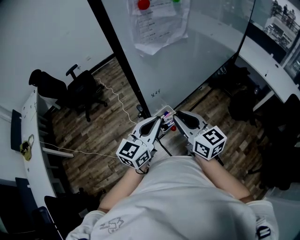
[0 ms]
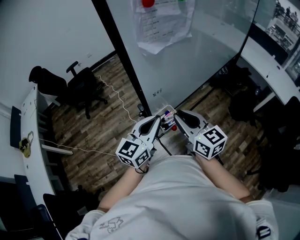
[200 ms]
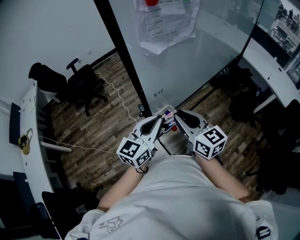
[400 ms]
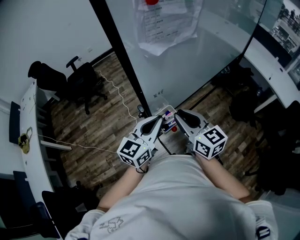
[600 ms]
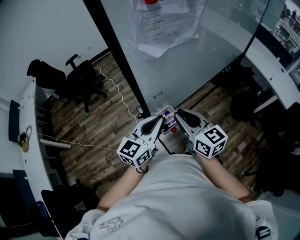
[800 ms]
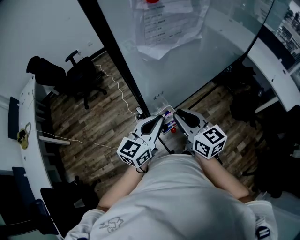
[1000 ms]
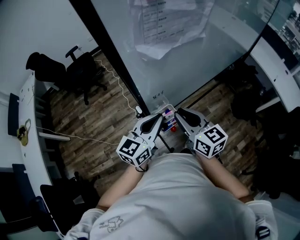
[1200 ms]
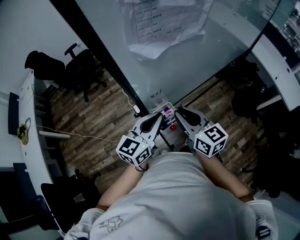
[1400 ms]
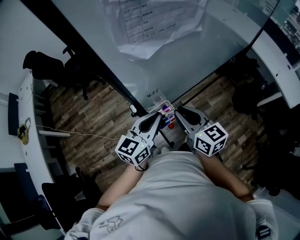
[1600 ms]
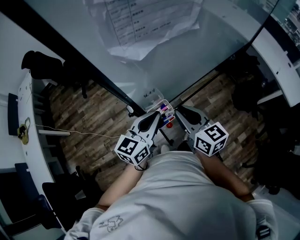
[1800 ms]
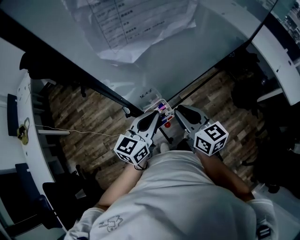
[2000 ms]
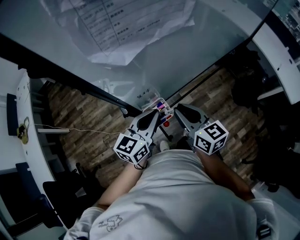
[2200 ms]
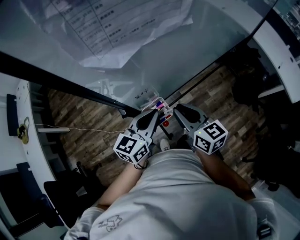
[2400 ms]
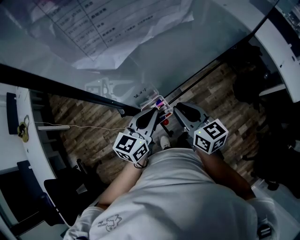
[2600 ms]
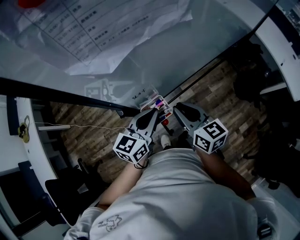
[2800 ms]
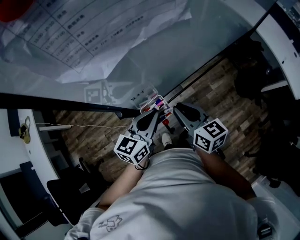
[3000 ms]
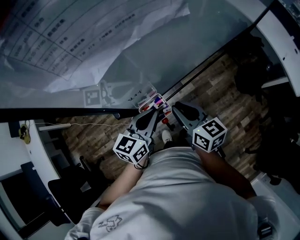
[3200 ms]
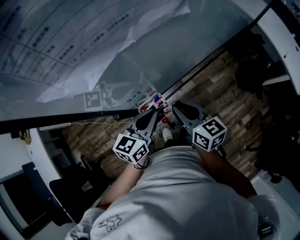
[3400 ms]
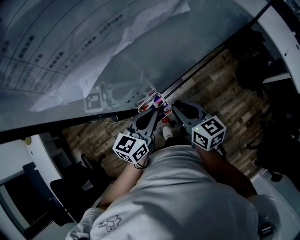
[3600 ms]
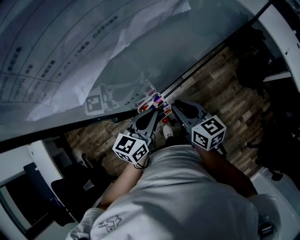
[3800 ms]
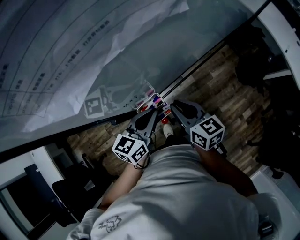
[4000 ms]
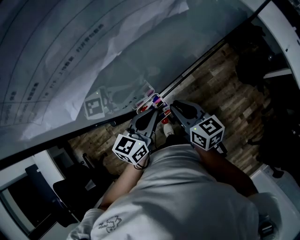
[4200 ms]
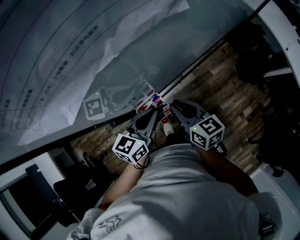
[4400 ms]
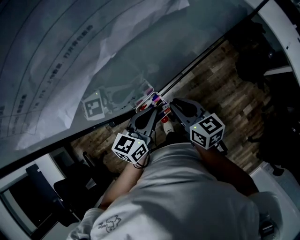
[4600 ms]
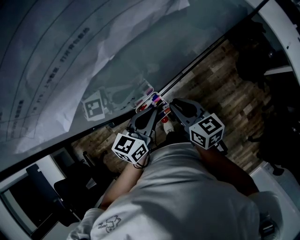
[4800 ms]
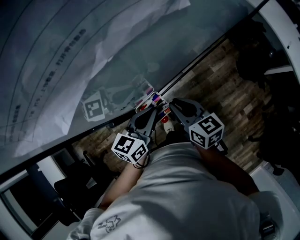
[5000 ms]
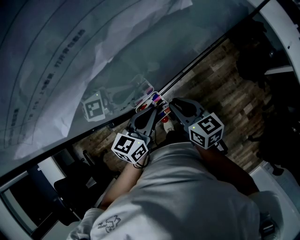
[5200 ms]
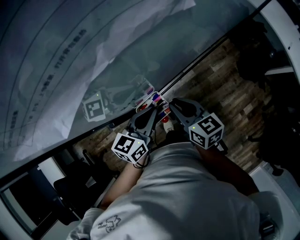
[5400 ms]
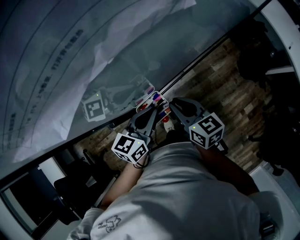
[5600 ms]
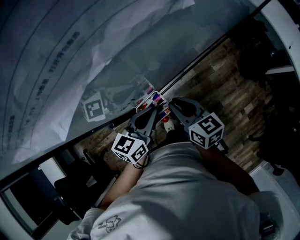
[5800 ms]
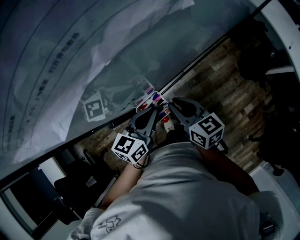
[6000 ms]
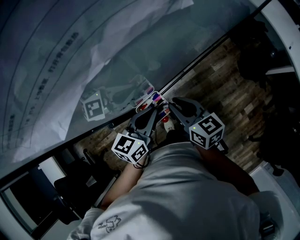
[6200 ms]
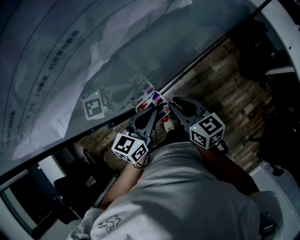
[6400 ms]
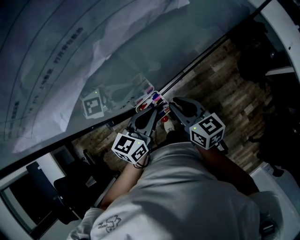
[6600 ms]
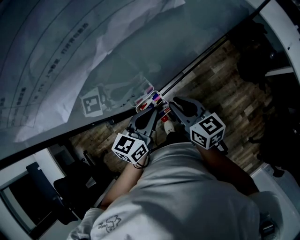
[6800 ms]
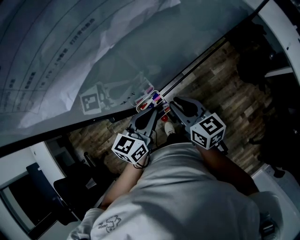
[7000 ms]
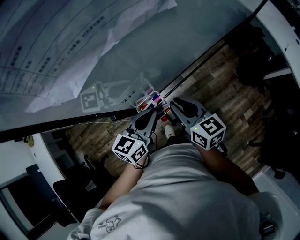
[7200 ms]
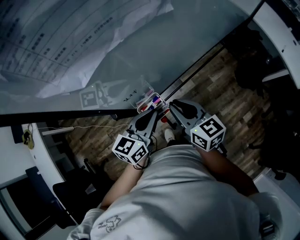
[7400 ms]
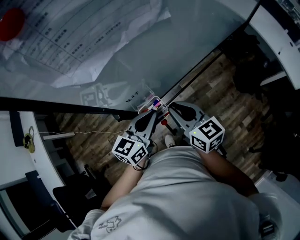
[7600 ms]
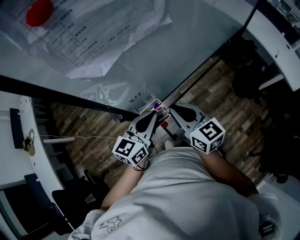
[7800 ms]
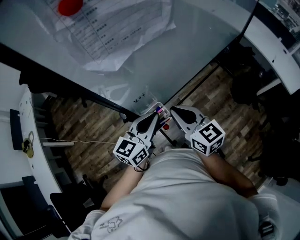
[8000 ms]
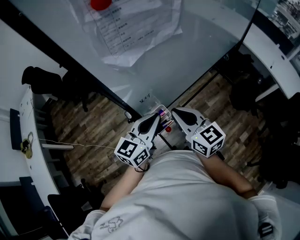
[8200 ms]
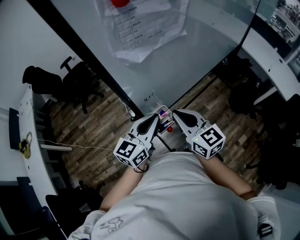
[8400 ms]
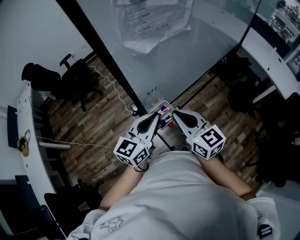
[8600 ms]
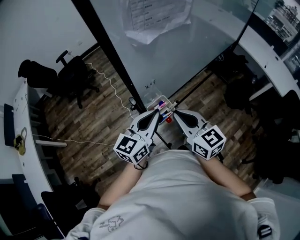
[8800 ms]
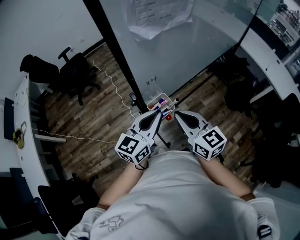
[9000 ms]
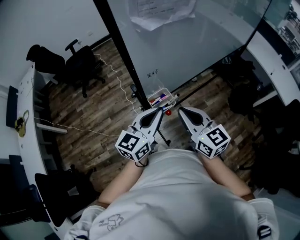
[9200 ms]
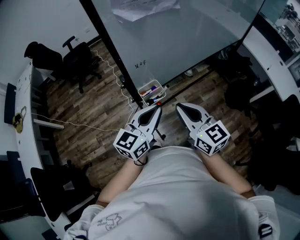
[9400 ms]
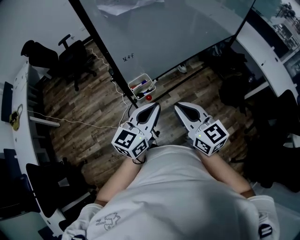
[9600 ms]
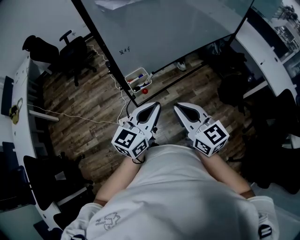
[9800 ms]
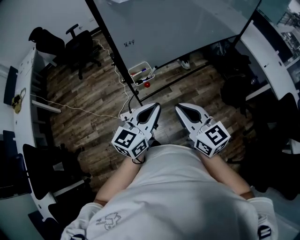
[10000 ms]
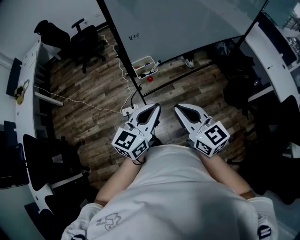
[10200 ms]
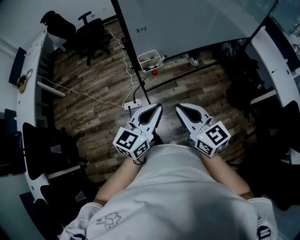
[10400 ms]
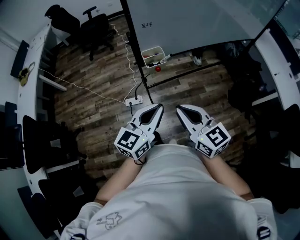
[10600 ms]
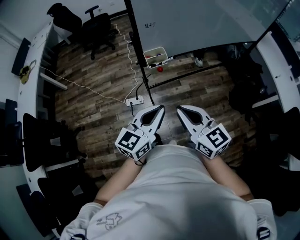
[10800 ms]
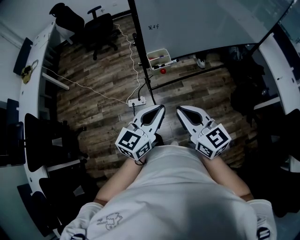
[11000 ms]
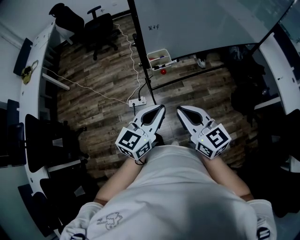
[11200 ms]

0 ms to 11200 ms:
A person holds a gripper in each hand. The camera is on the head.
0 ms to 1600 ms: Both grippers move forward and downward, approximately 10 cm.
1600 ms to 3200 ms: Both grippers travel together downward, some 5 cm.
3200 ms to 4800 ms: The grippers make only small movements.
4800 ms to 6400 ms: Both grippers stay put.
6400 ms to 8000 ms: Both grippers move upward, about 10 cm.
8000 ms to 9600 ms: Both grippers travel together backward and to the right, approximately 15 cm.
9600 ms to 11200 ms: Both grippers move backward, some 10 cm.

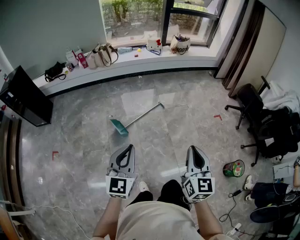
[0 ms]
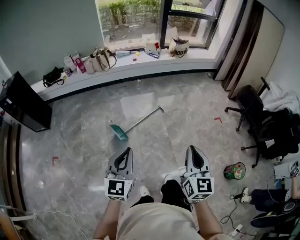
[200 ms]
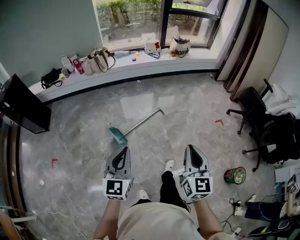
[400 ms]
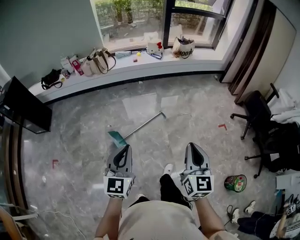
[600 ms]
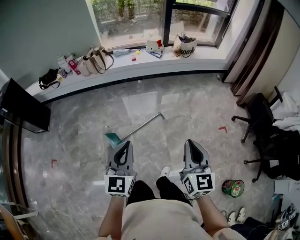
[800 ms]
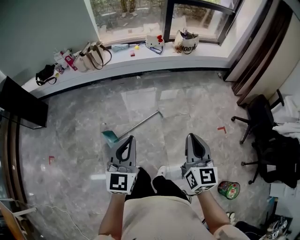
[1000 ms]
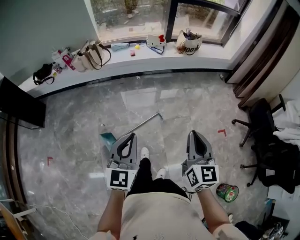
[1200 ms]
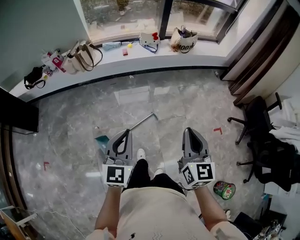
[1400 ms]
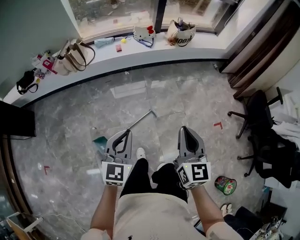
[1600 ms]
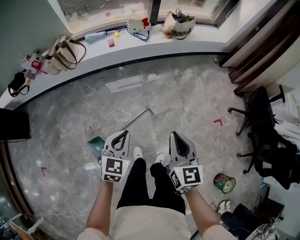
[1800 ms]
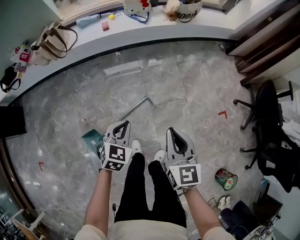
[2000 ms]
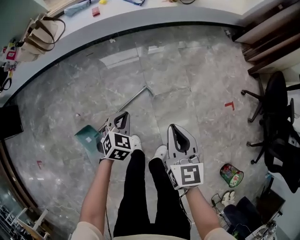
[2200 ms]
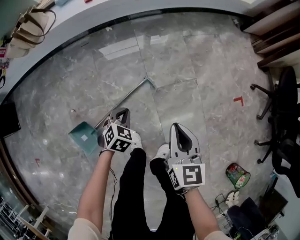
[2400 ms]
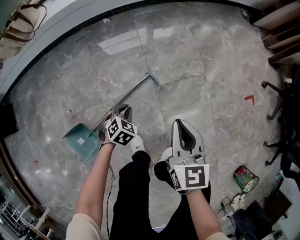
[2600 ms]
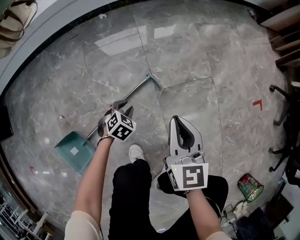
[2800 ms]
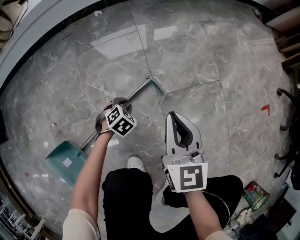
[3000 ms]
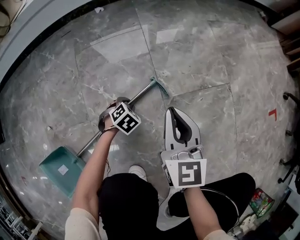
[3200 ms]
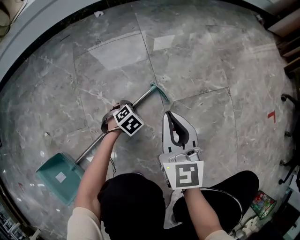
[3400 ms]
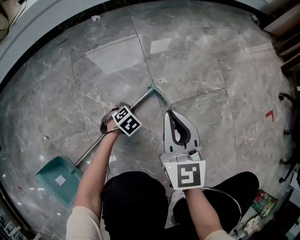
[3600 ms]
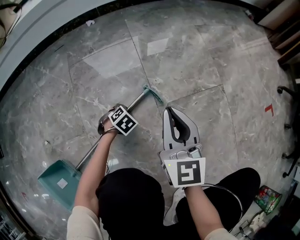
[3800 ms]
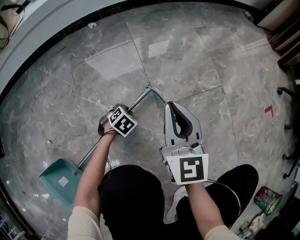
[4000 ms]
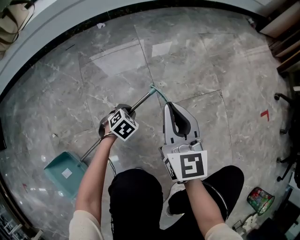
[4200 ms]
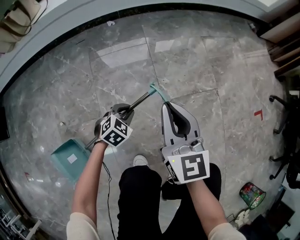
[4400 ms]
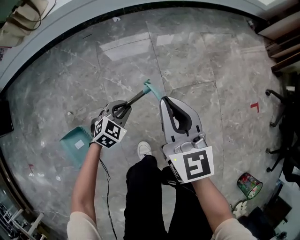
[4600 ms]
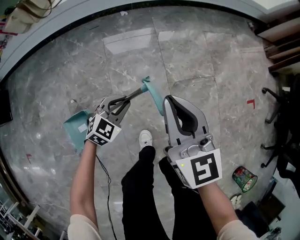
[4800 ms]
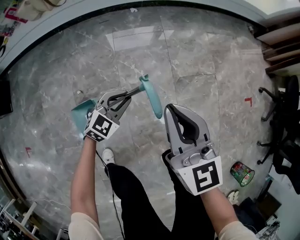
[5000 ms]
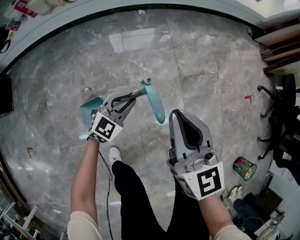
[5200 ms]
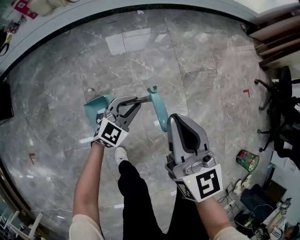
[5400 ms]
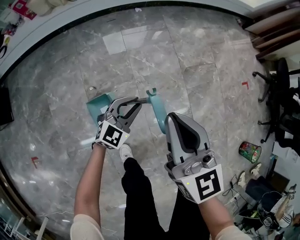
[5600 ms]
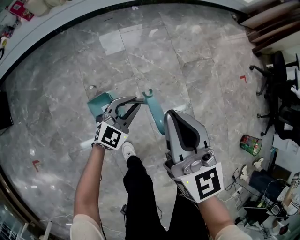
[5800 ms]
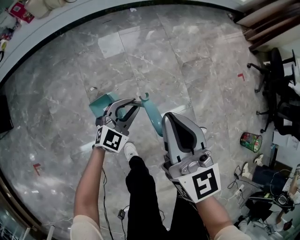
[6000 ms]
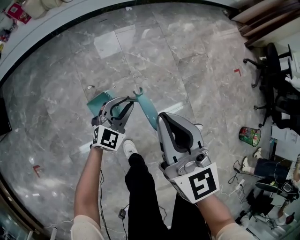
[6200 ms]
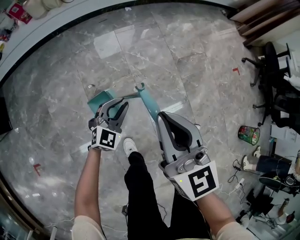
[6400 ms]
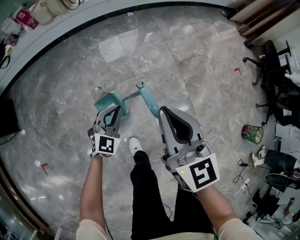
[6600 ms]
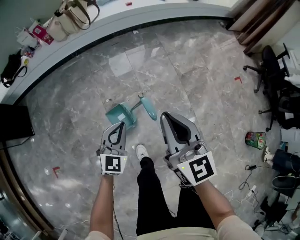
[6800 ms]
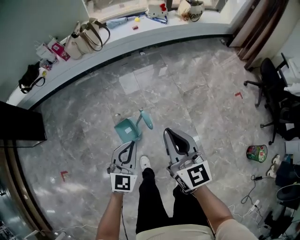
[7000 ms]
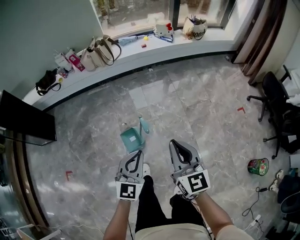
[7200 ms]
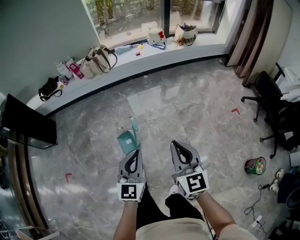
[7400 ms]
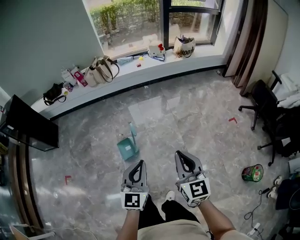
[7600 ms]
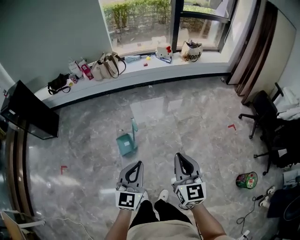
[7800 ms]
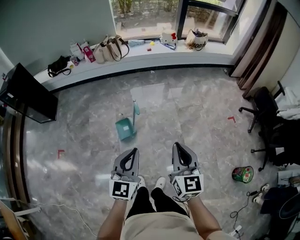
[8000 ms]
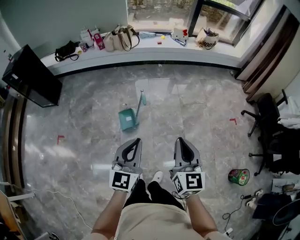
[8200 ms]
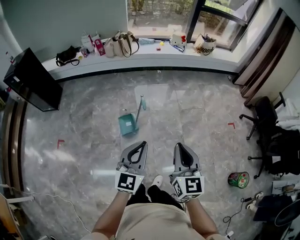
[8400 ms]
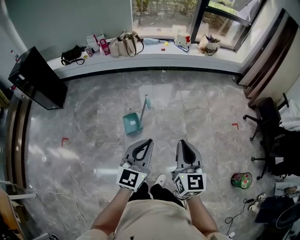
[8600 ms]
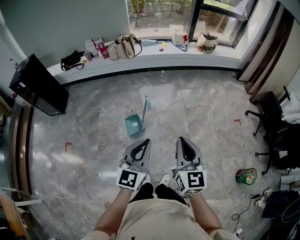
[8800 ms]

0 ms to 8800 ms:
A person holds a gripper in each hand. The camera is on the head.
0 ms to 1400 ms: The pair of grippers is taken forward, about 50 cm.
1400 ms to 3000 ms: The two grippers go roughly 90 cm downward. The left gripper tips its fingers downward by approximately 60 degrees.
3000 ms to 4400 ms: The grippers both shift upward by about 10 cm.
4400 ms to 5800 ms: The left gripper heads upward, backward and to the left, covering approximately 50 cm, and tilts its fingers about 40 degrees upward. The right gripper moves backward, to the left and upward, about 50 cm.
5800 ms to 7400 ms: The right gripper goes some 40 cm upward, backward and to the right. Meanwhile the left gripper heads upward and backward, covering roughly 60 cm, and rotates roughly 40 degrees.
7400 ms to 8800 ms: Both grippers travel together backward and upward, roughly 15 cm.

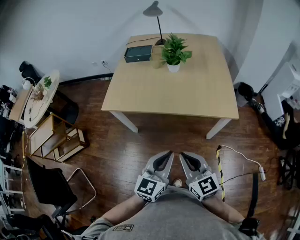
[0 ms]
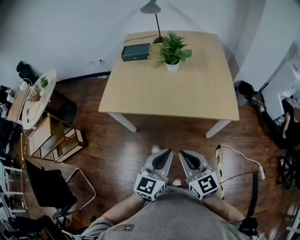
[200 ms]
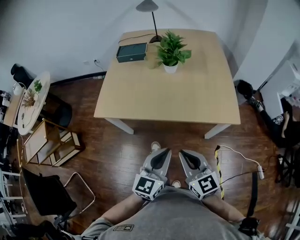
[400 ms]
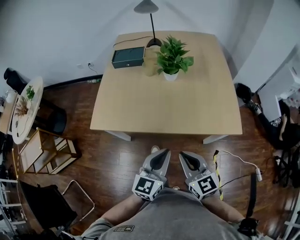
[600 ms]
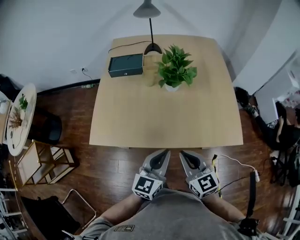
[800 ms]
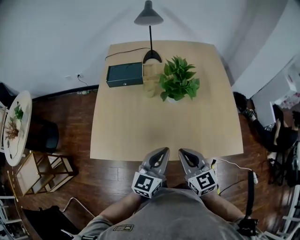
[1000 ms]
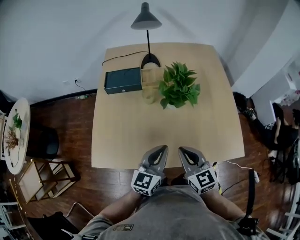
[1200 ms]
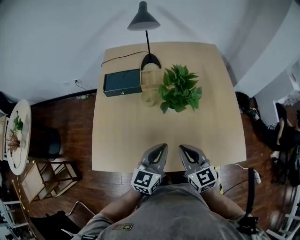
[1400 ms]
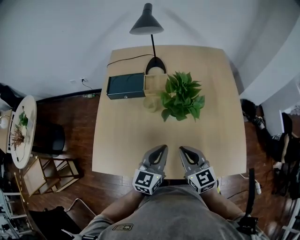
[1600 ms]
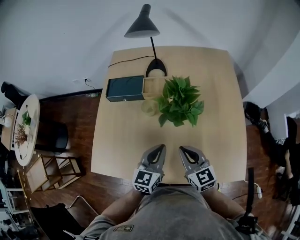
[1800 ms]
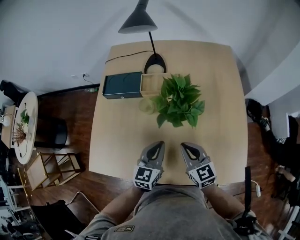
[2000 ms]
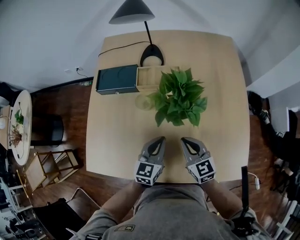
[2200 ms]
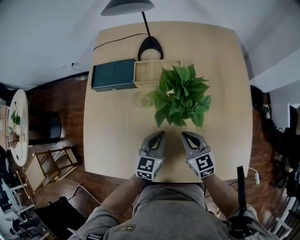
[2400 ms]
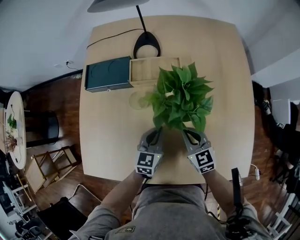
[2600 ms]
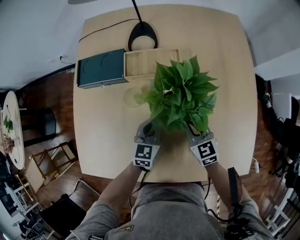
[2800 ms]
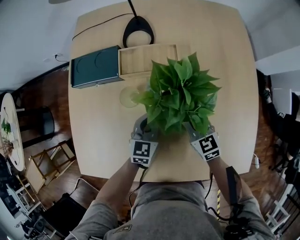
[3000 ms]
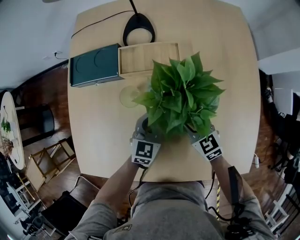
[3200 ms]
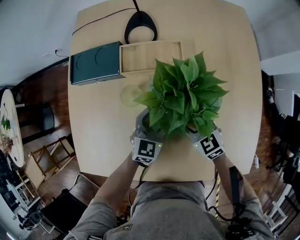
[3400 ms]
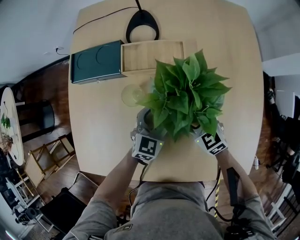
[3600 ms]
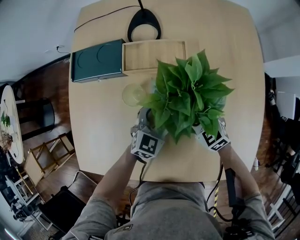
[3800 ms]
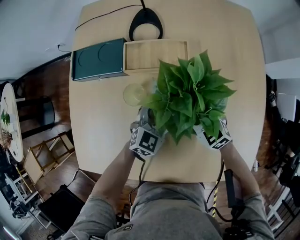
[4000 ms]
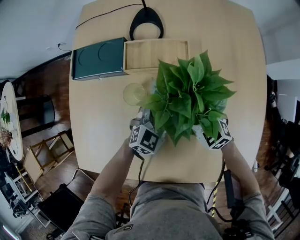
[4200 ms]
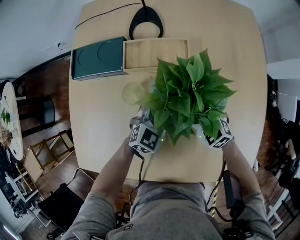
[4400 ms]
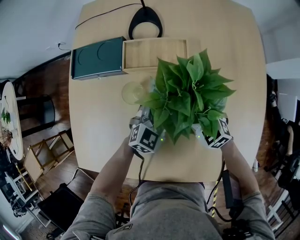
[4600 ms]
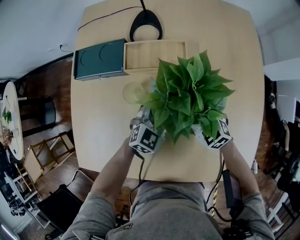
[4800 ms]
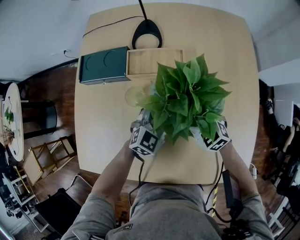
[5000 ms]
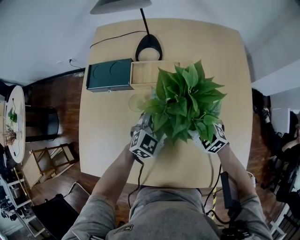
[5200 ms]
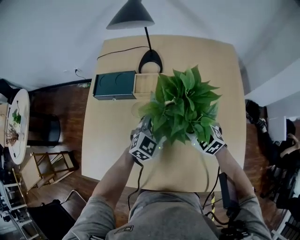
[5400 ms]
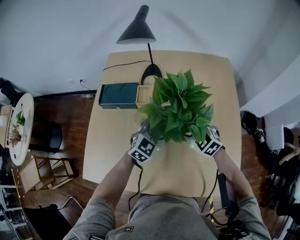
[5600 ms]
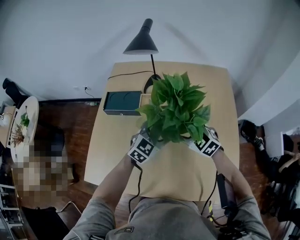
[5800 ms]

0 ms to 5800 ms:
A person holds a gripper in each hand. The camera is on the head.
0 ms to 1400 ms: Both grippers travel together forward, approximately 40 cm.
1400 ms to 2800 ms: Both grippers travel together forward and downward, approximately 25 cm.
2800 ms to 4400 ms: The left gripper shifts approximately 5 cm to the right, changes its angle by approximately 30 degrees, and opens its fingers. Meanwhile the right gripper swivels roughly 30 degrees, and opens up.
4400 ms to 5800 ms: Both grippers move upward, about 15 cm.
